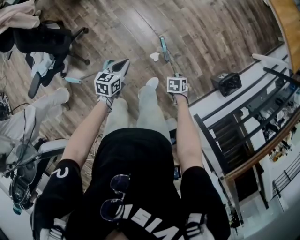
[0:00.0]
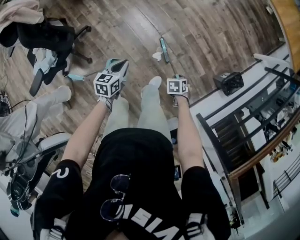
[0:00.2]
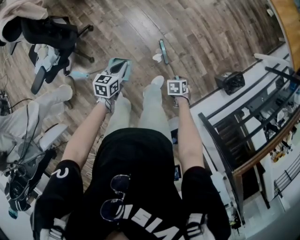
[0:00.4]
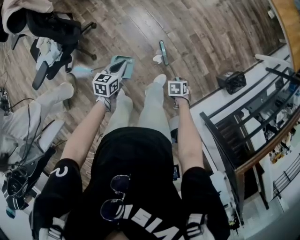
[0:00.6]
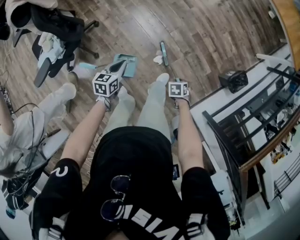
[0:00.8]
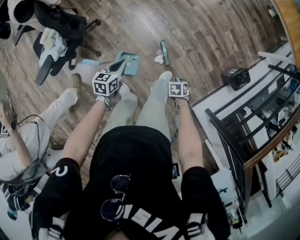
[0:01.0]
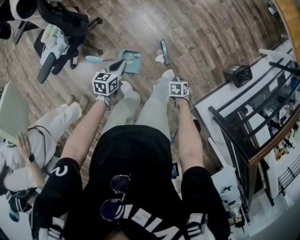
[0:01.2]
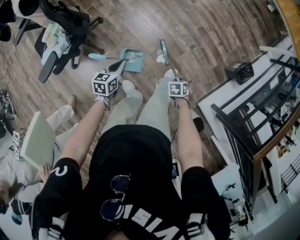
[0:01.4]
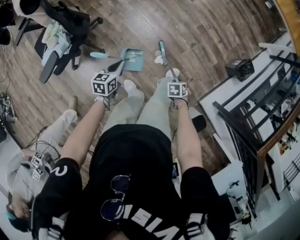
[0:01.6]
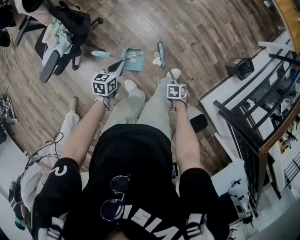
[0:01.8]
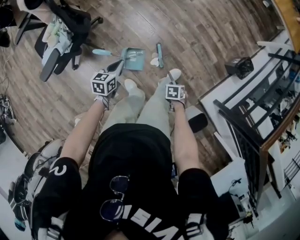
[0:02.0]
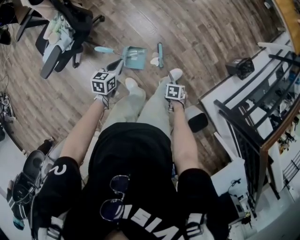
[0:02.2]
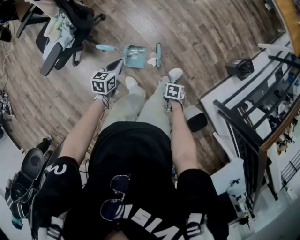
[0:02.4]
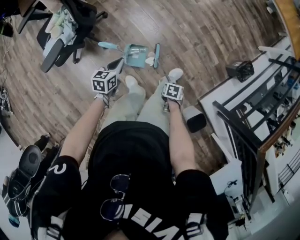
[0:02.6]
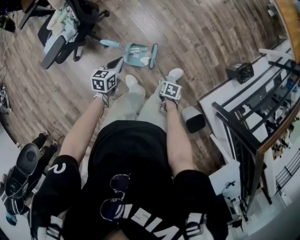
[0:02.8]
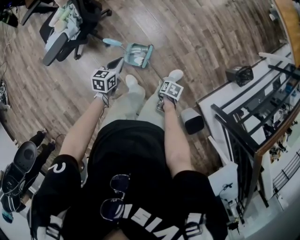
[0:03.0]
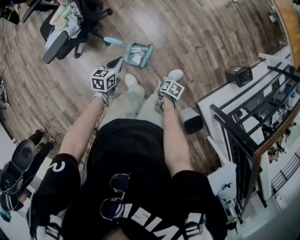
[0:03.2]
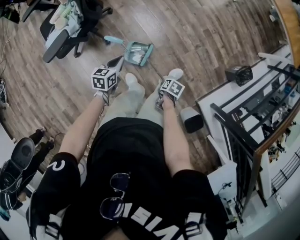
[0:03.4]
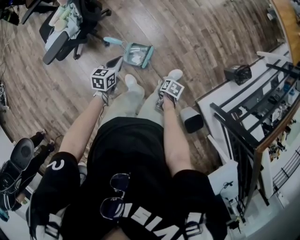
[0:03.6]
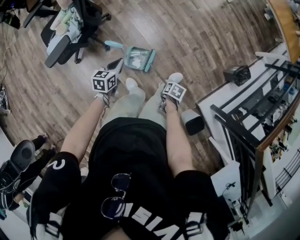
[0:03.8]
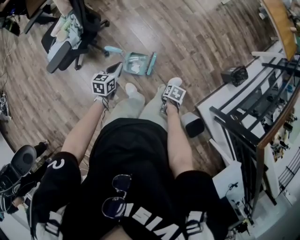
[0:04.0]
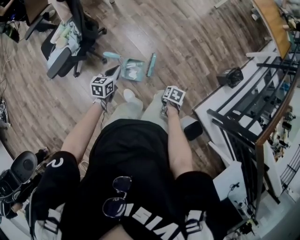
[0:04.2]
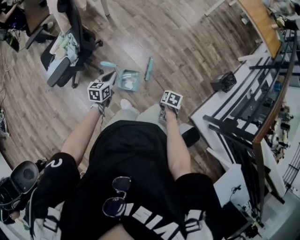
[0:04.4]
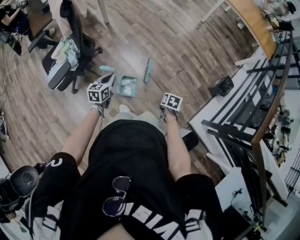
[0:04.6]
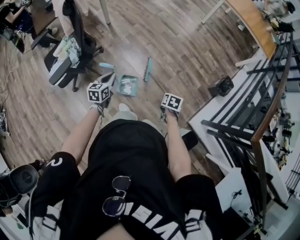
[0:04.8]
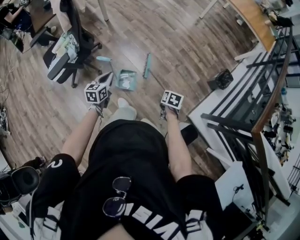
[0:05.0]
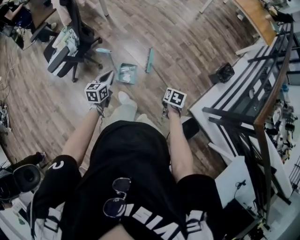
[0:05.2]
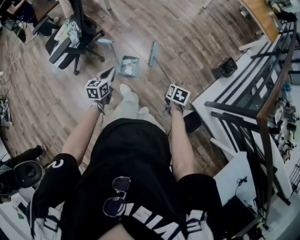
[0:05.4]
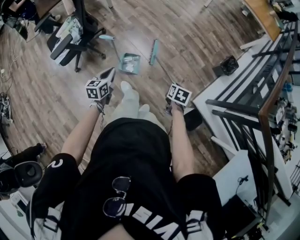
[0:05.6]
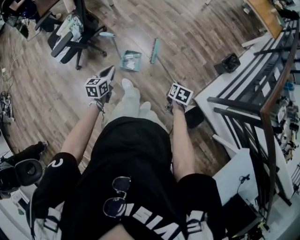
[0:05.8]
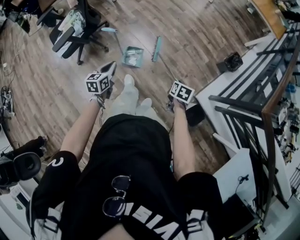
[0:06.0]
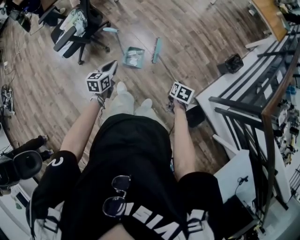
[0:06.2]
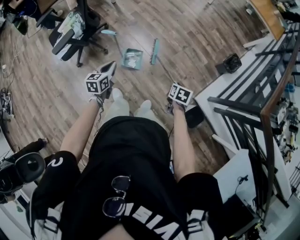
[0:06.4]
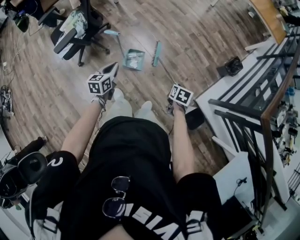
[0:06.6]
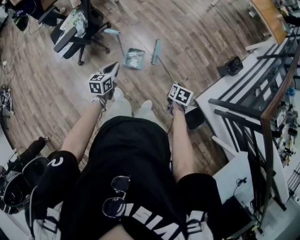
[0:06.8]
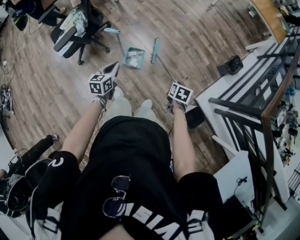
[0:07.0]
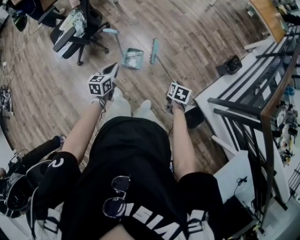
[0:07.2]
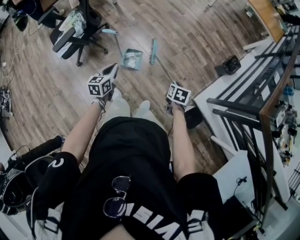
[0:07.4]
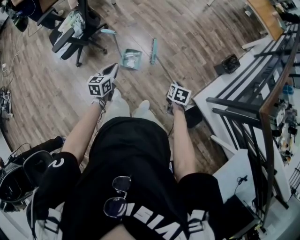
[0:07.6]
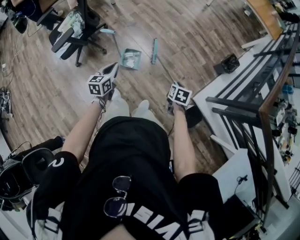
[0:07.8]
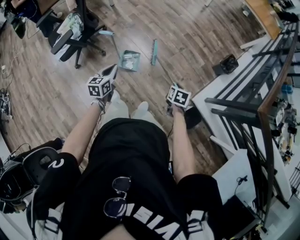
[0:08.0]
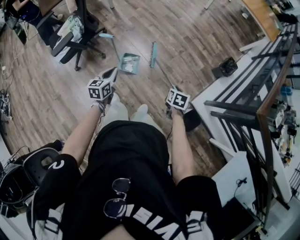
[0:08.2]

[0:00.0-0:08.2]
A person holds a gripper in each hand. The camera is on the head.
0.0 to 1.6 s: The left gripper moves about 25 cm; the right gripper ends up about 30 cm from where it was.
1.6 to 3.2 s: The left gripper changes place by approximately 10 cm. Meanwhile the right gripper changes place by approximately 15 cm, and changes its angle by roughly 30 degrees.
3.2 to 5.0 s: The grippers both shift upward by approximately 15 cm. The right gripper rotates roughly 20 degrees.
5.0 to 6.6 s: The grippers both shift backward by about 10 cm.
6.6 to 8.2 s: The grippers make only small movements.

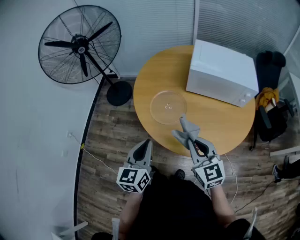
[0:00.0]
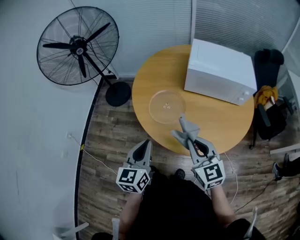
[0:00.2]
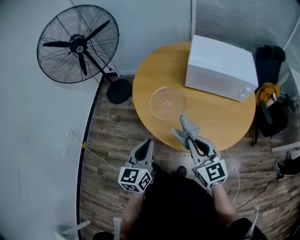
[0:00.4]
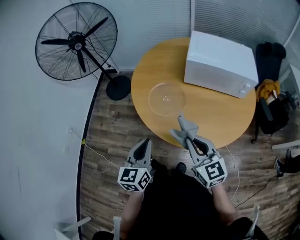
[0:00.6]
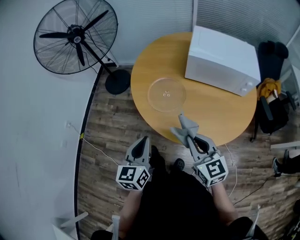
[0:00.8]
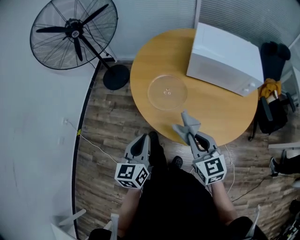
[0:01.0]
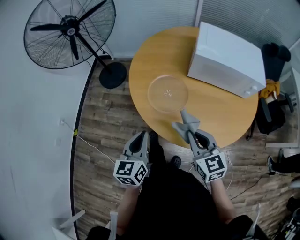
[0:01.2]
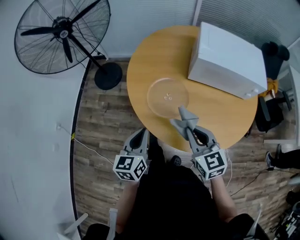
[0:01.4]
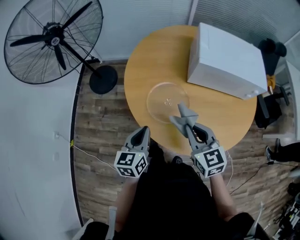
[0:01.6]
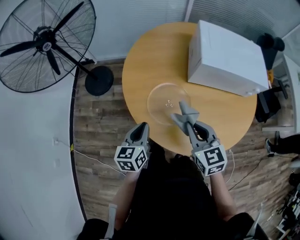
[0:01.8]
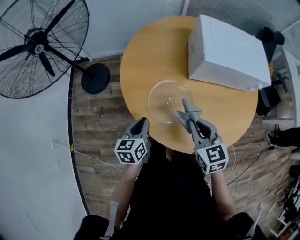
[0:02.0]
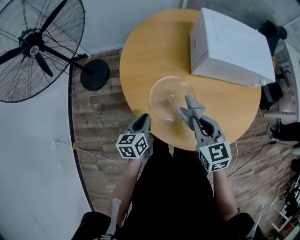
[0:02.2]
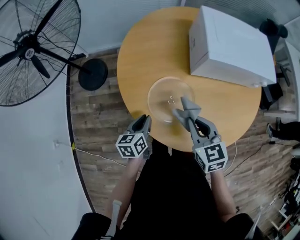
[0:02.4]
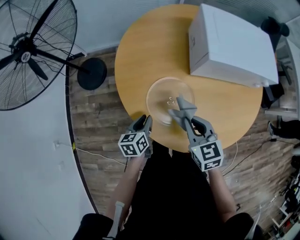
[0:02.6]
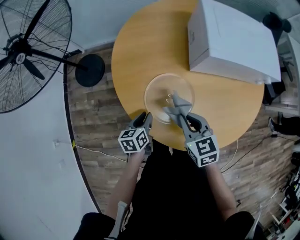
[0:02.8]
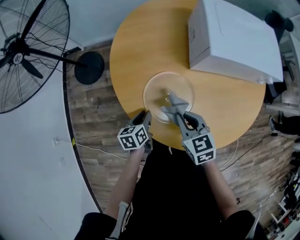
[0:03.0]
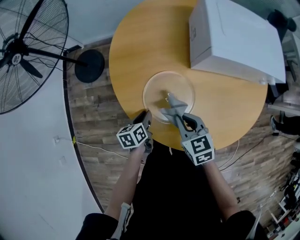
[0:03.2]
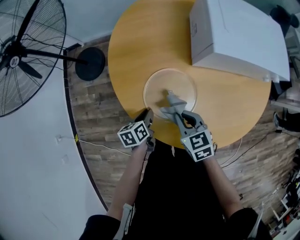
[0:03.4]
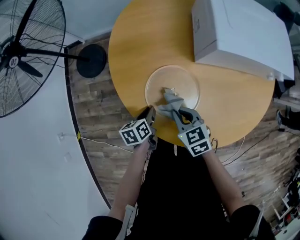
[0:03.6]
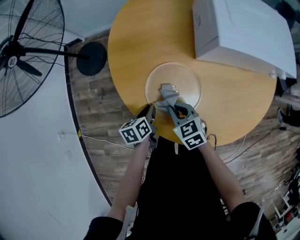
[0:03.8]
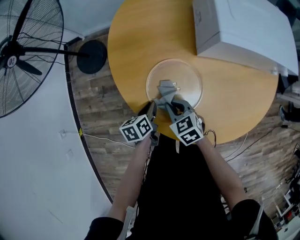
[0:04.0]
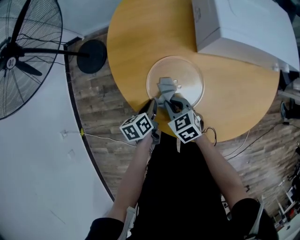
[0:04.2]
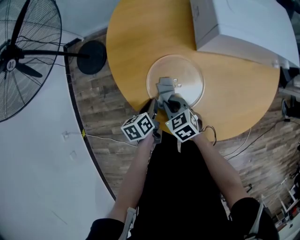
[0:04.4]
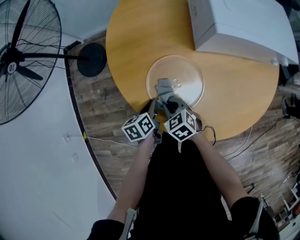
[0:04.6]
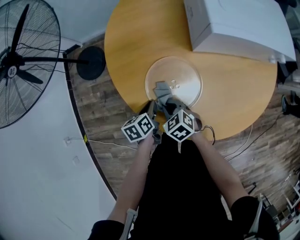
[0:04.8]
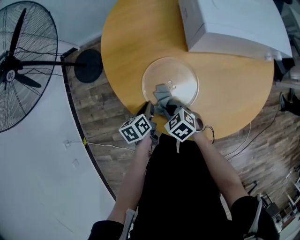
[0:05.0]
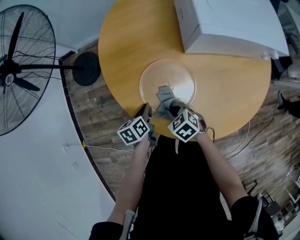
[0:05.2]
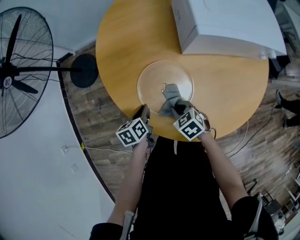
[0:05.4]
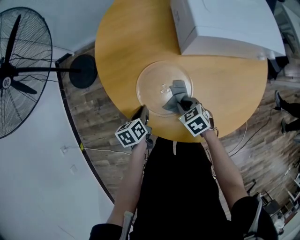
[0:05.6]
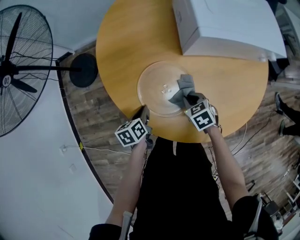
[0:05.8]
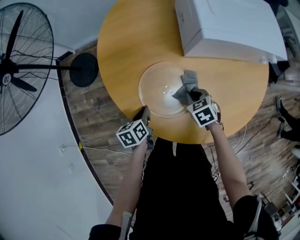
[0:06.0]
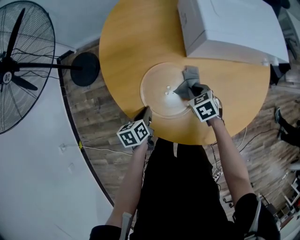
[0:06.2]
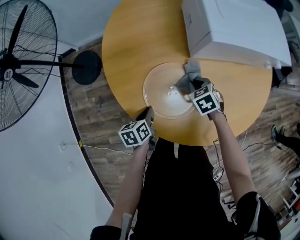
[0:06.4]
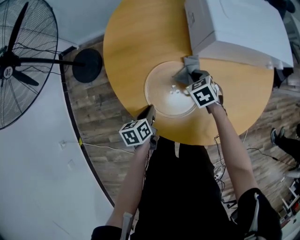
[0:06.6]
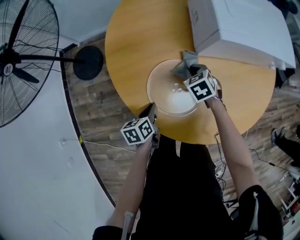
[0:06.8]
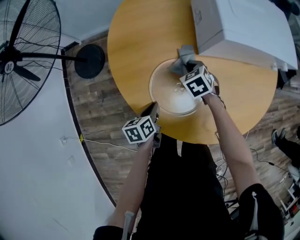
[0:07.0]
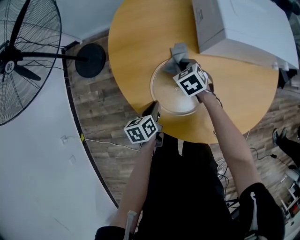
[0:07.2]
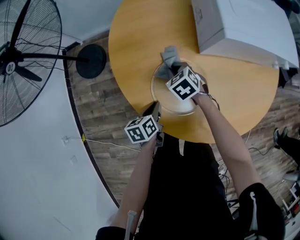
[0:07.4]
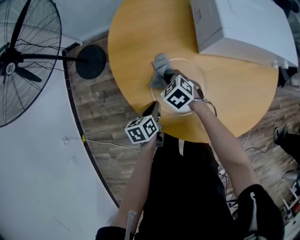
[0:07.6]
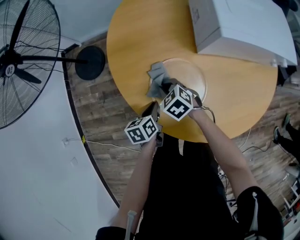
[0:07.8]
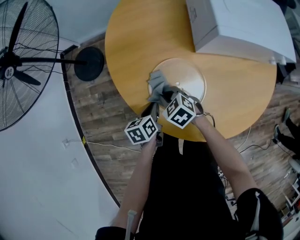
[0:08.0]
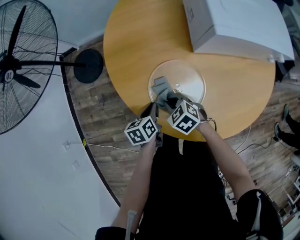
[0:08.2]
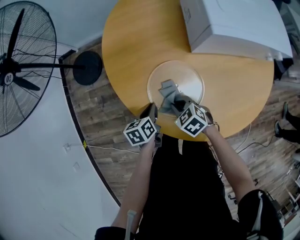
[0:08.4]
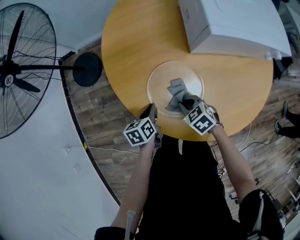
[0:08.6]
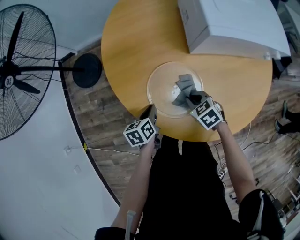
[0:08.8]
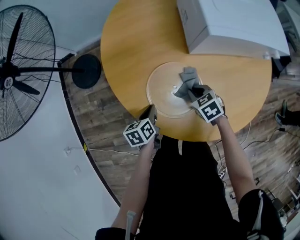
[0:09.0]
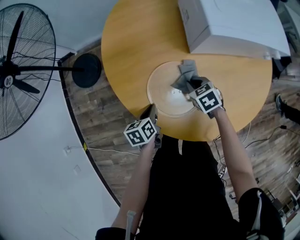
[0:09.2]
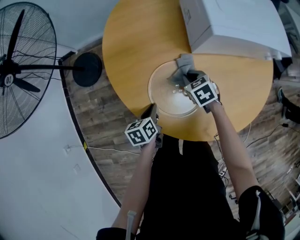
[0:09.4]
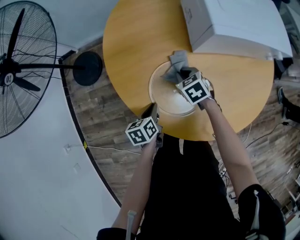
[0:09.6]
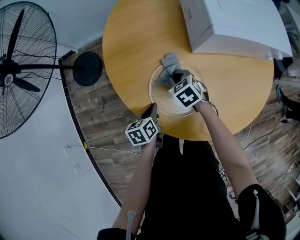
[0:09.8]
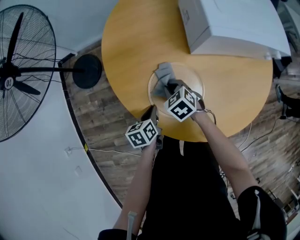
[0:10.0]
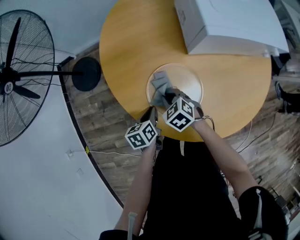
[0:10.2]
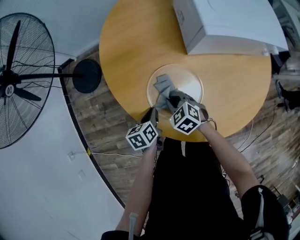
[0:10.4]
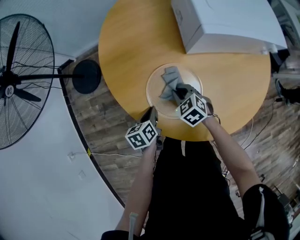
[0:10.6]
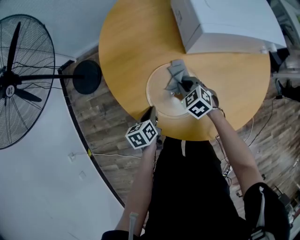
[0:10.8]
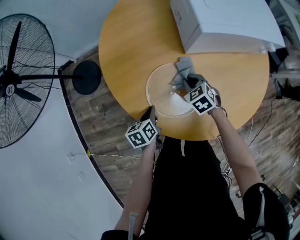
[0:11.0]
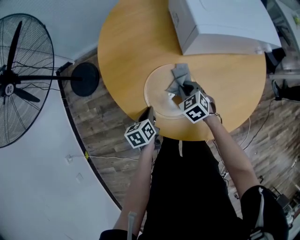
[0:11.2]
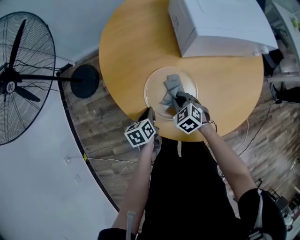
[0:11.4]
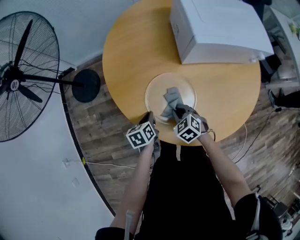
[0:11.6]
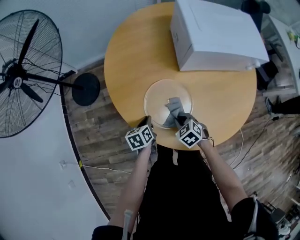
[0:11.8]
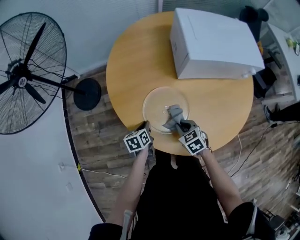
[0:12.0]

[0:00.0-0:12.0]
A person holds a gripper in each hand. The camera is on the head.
0.0 to 1.6 s: The left gripper travels forward and downward by roughly 15 cm. Meanwhile the right gripper shifts approximately 15 cm forward.
1.6 to 3.0 s: Both grippers travel together downward and forward, roughly 20 cm. The left gripper changes its angle by about 30 degrees.
3.0 to 4.4 s: The right gripper shifts approximately 15 cm downward and to the left.
4.4 to 6.0 s: The right gripper travels to the right by about 15 cm.
6.0 to 7.6 s: The right gripper is displaced to the left by roughly 15 cm.
7.6 to 9.0 s: The right gripper shifts roughly 15 cm to the right and backward.
9.0 to 10.4 s: The right gripper goes some 10 cm to the left.
10.4 to 12.0 s: The right gripper travels to the right and backward by some 10 cm.

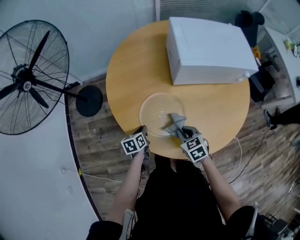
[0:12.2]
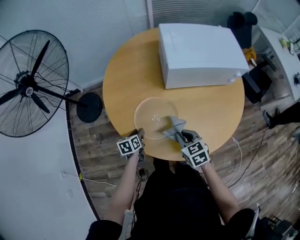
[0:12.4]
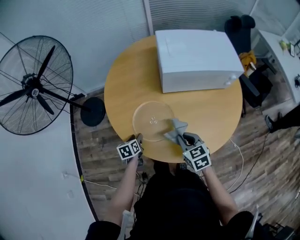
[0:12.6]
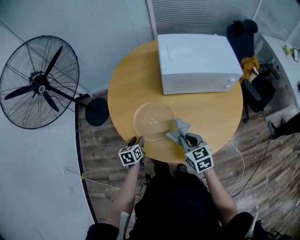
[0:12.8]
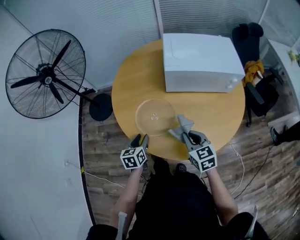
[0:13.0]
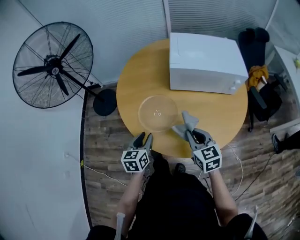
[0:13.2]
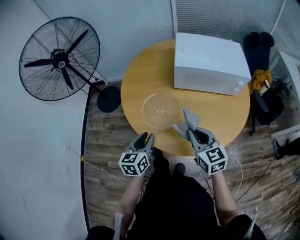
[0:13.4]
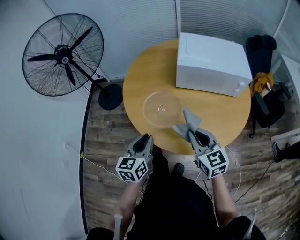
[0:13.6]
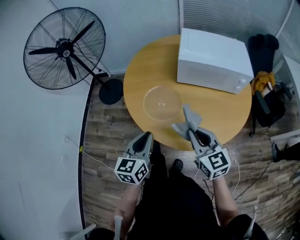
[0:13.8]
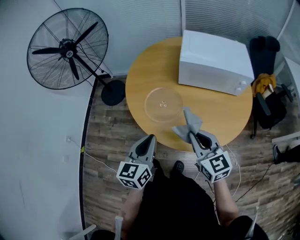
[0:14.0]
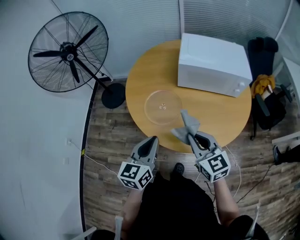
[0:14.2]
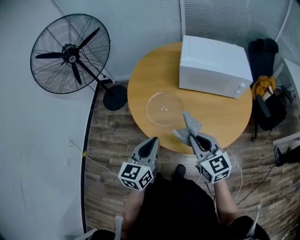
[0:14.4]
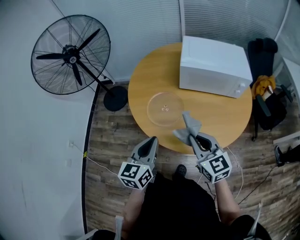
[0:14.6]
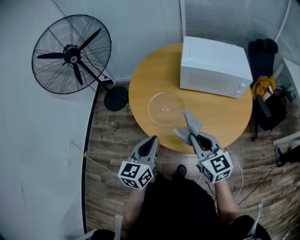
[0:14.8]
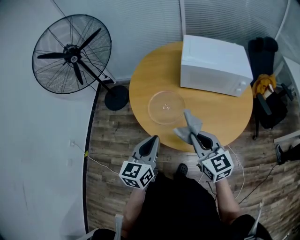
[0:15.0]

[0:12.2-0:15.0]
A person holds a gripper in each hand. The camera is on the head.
12.2 to 13.6 s: The right gripper goes roughly 25 cm upward, backward and to the right, and tips its fingers upward by roughly 30 degrees, while the left gripper moves upward and backward, approximately 30 cm, turns by about 30 degrees, and opens, then closes again.
13.6 to 15.0 s: The left gripper travels upward by approximately 5 cm. Meanwhile the right gripper shifts by some 5 cm.

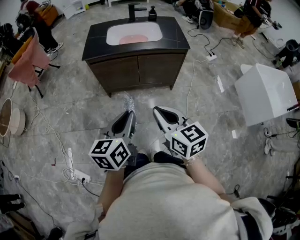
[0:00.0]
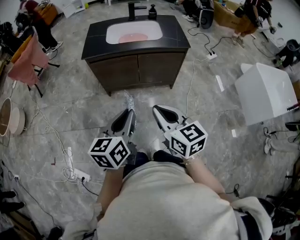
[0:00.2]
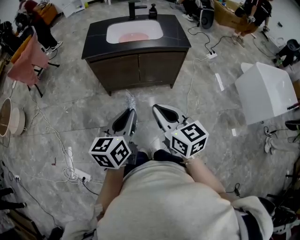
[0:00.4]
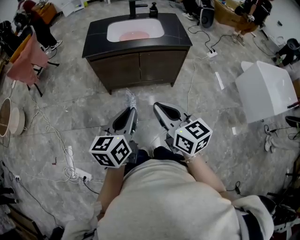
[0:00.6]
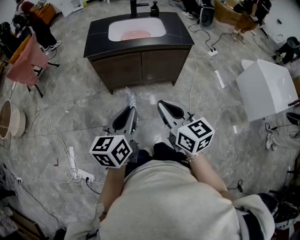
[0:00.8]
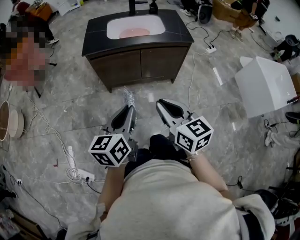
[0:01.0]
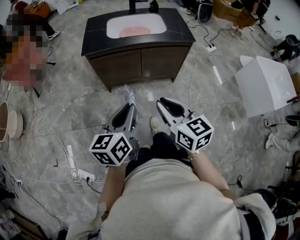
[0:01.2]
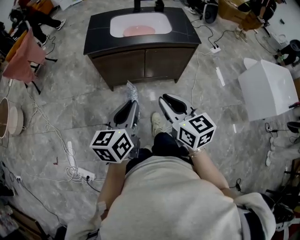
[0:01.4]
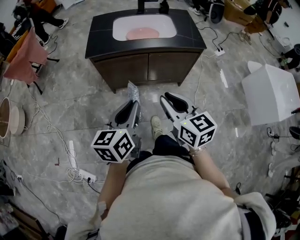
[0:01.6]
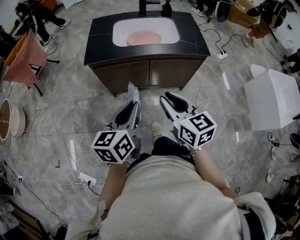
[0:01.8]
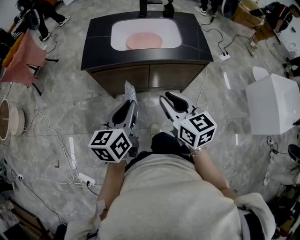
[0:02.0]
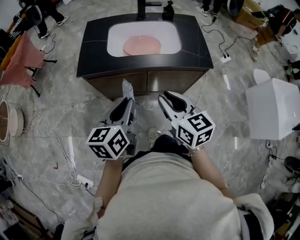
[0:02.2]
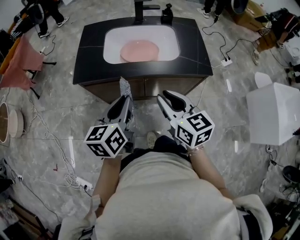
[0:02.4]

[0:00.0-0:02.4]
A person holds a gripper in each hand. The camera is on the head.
0.0 to 1.2 s: The left gripper ends up some 5 cm from where it was, while the right gripper shifts by about 5 cm.
1.2 to 2.4 s: The grippers both shift forward by roughly 30 cm.
